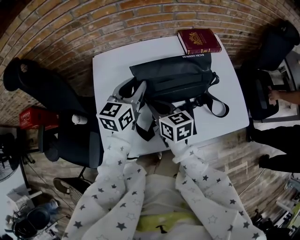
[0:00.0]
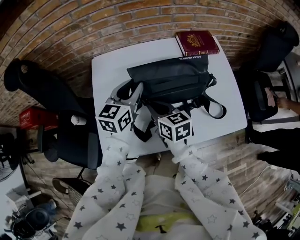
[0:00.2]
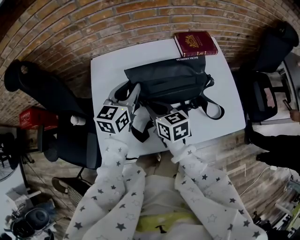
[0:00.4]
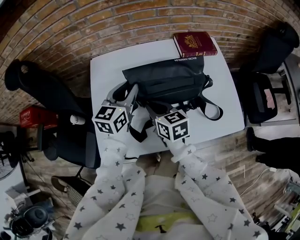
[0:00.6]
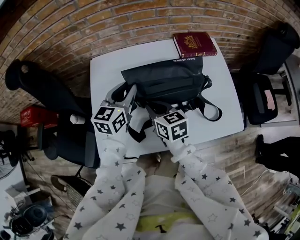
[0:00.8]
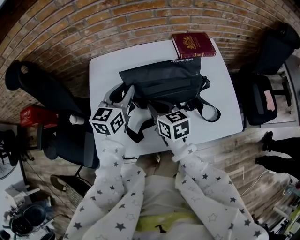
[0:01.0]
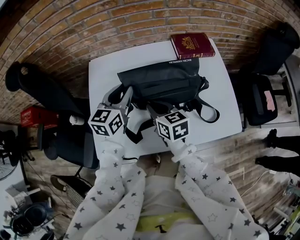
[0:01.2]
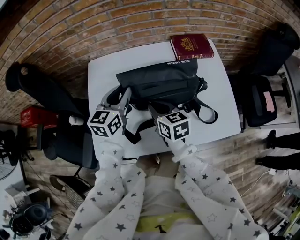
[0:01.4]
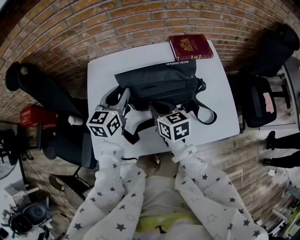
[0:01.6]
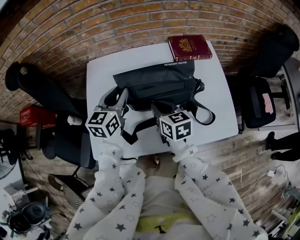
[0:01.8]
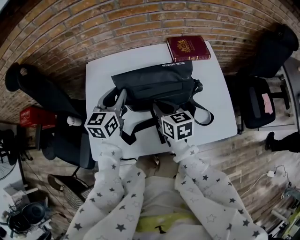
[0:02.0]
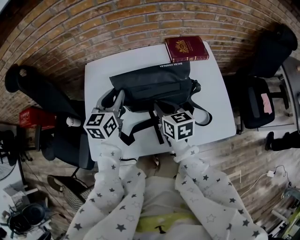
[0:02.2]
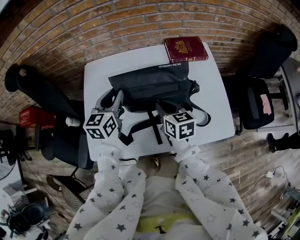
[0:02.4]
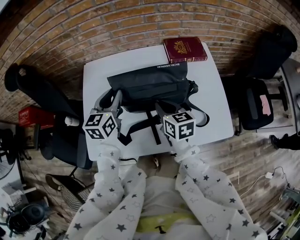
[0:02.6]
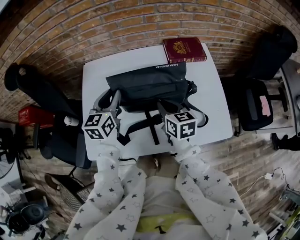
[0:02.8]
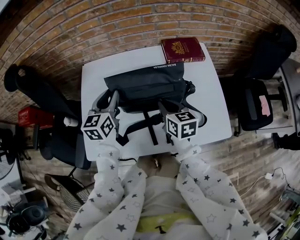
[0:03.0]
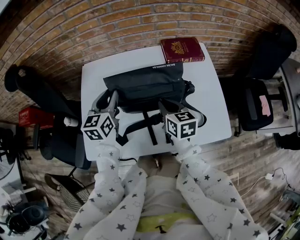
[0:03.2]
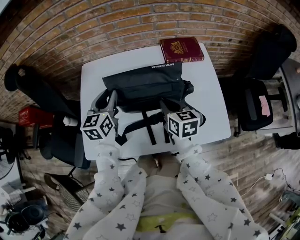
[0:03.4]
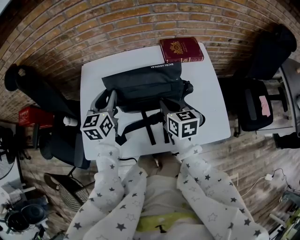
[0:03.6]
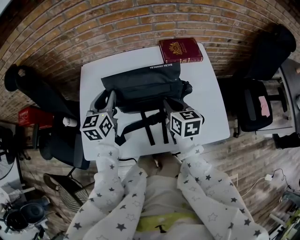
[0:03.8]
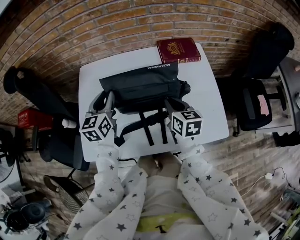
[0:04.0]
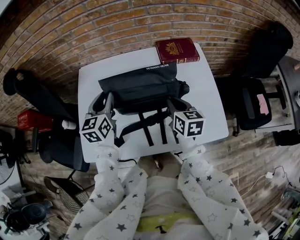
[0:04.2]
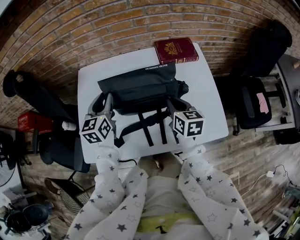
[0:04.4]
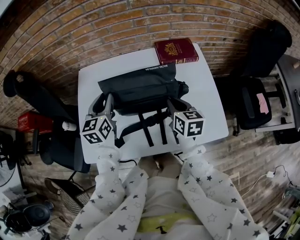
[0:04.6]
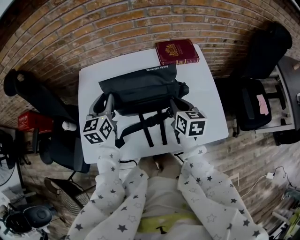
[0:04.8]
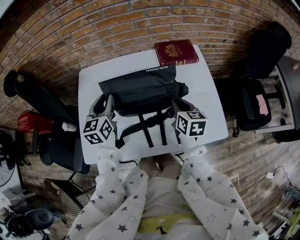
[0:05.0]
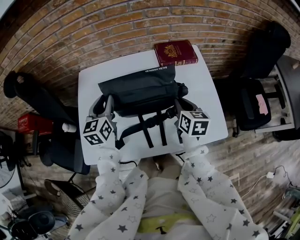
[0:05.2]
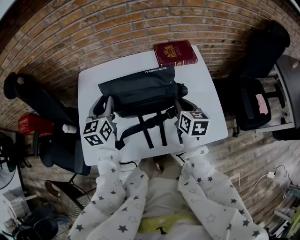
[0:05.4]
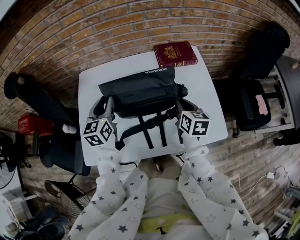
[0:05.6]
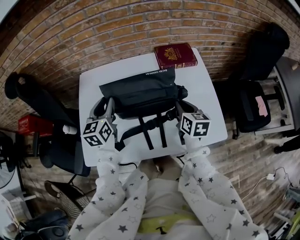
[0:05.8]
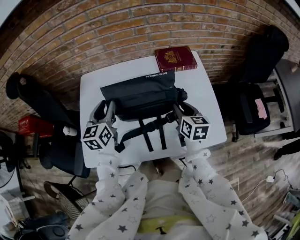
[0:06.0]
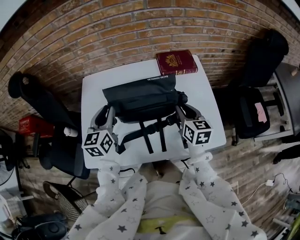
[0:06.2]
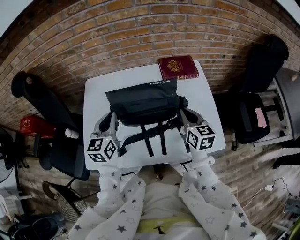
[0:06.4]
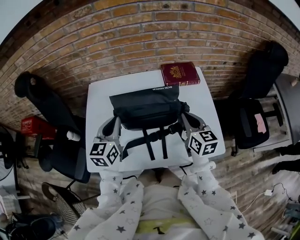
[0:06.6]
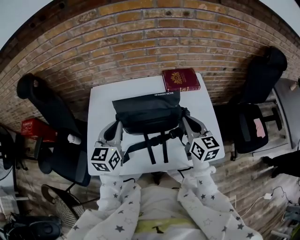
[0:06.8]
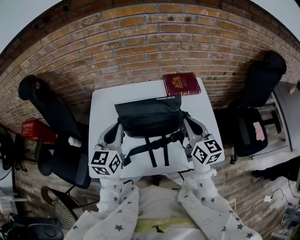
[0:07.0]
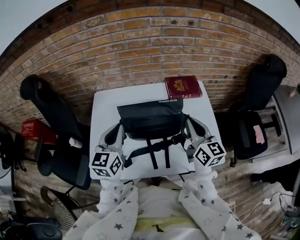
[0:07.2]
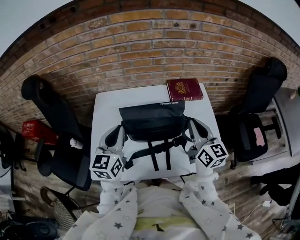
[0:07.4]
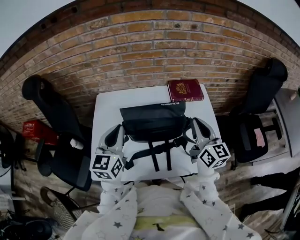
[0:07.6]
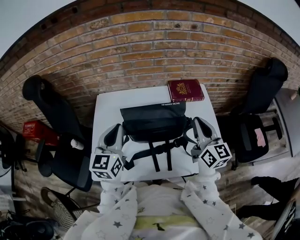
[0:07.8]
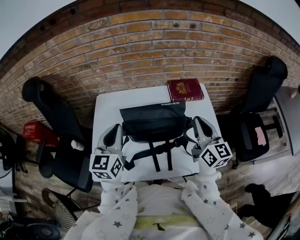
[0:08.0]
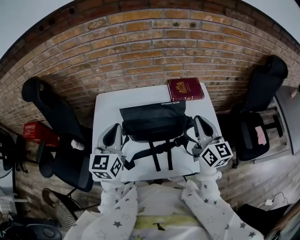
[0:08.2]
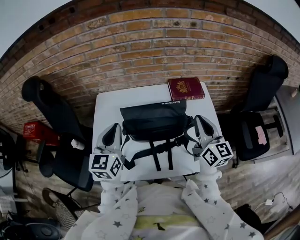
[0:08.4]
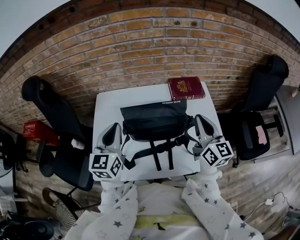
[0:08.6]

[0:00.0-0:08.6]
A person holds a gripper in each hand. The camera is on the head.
0:00.0 to 0:01.4: The right gripper heads to the right, covering roughly 5 cm.
0:01.4 to 0:02.8: The right gripper is displaced to the right by approximately 10 cm.
0:02.8 to 0:04.4: The right gripper heads to the right, covering some 5 cm.
0:04.4 to 0:05.8: The grippers stay close to where they were, moving slightly.
0:05.8 to 0:07.2: The right gripper is displaced upward by roughly 15 cm, turns by about 30 degrees, and opens, then closes again. Meanwhile the left gripper moves upward and backward, about 10 cm, and closes its fingers.
0:07.2 to 0:08.6: The grippers make only small movements.

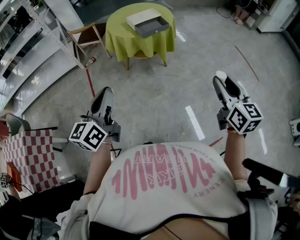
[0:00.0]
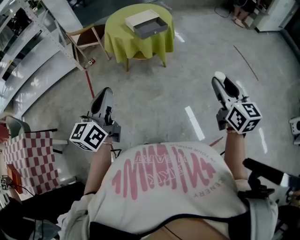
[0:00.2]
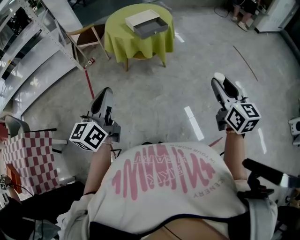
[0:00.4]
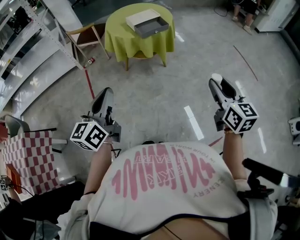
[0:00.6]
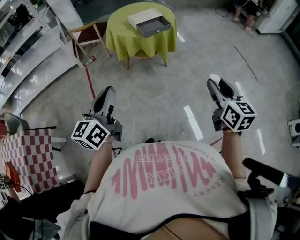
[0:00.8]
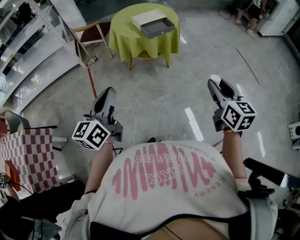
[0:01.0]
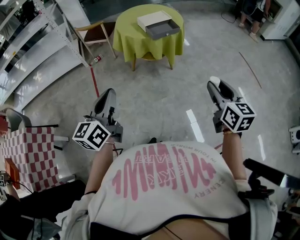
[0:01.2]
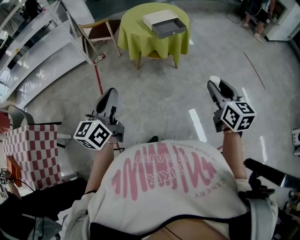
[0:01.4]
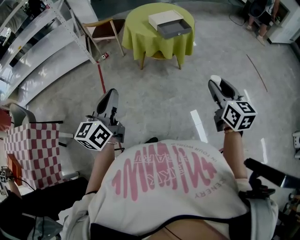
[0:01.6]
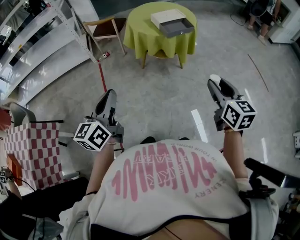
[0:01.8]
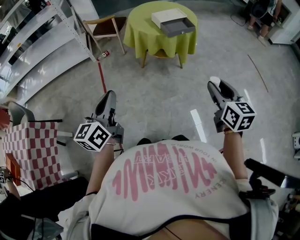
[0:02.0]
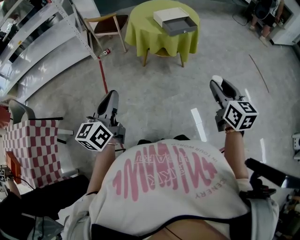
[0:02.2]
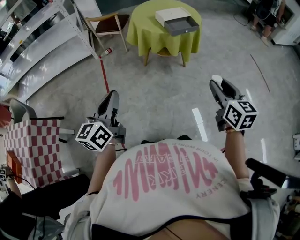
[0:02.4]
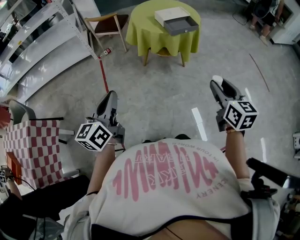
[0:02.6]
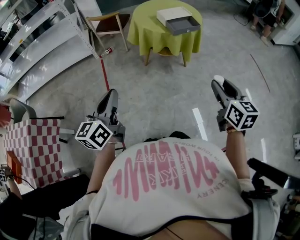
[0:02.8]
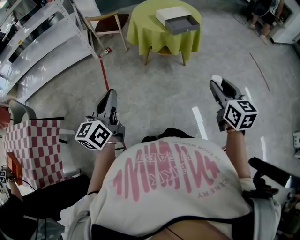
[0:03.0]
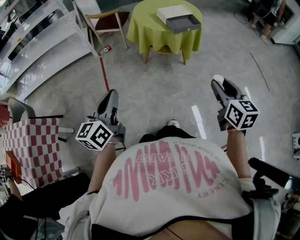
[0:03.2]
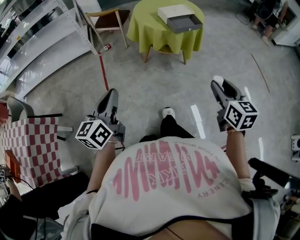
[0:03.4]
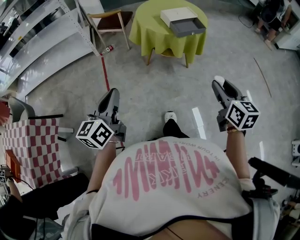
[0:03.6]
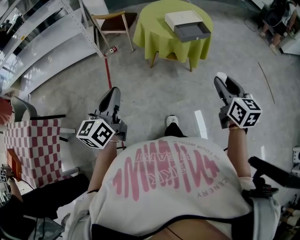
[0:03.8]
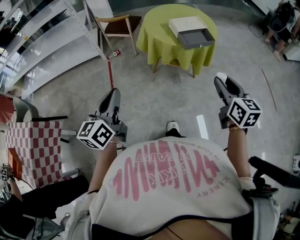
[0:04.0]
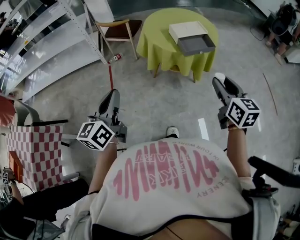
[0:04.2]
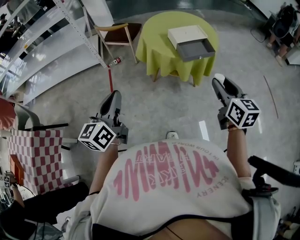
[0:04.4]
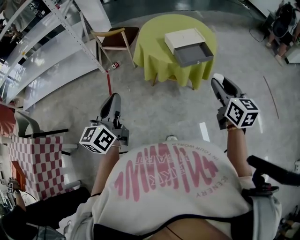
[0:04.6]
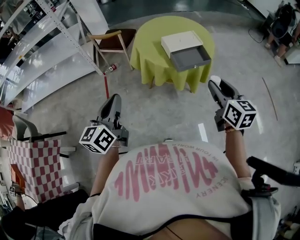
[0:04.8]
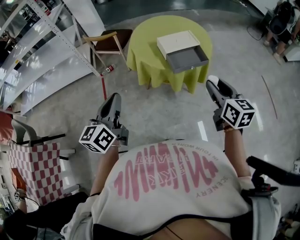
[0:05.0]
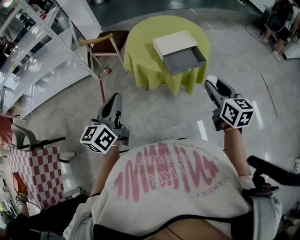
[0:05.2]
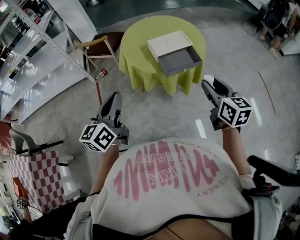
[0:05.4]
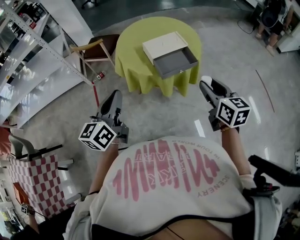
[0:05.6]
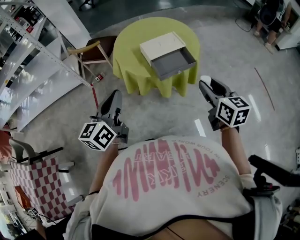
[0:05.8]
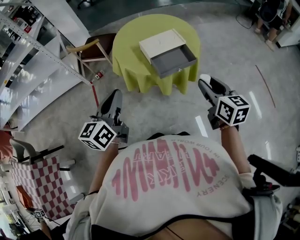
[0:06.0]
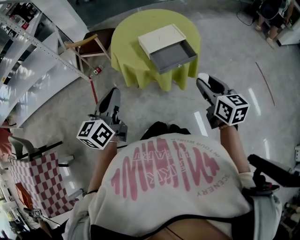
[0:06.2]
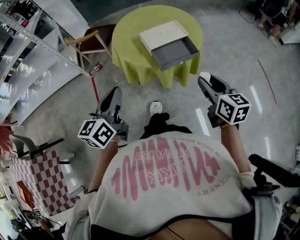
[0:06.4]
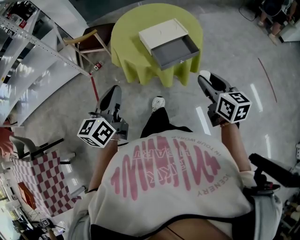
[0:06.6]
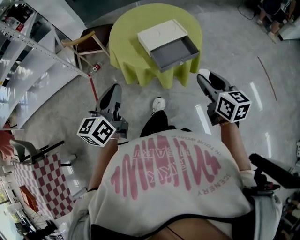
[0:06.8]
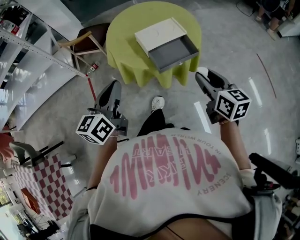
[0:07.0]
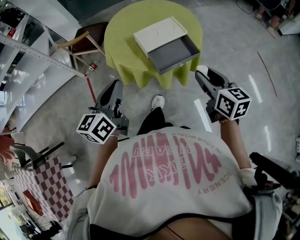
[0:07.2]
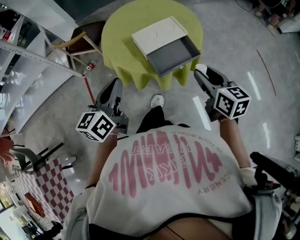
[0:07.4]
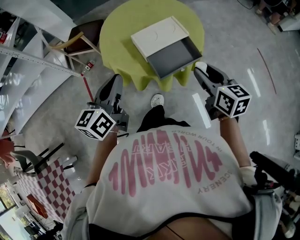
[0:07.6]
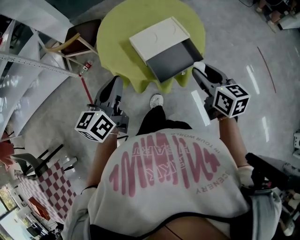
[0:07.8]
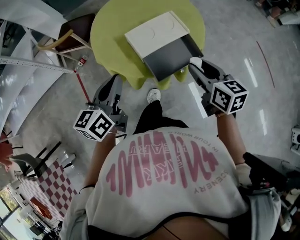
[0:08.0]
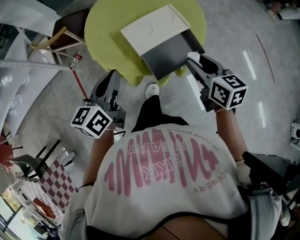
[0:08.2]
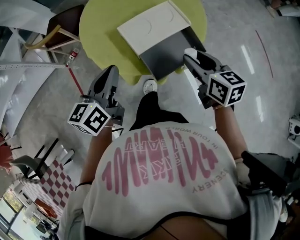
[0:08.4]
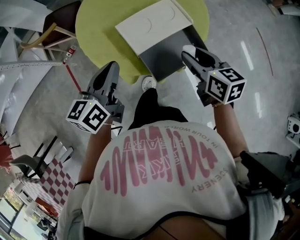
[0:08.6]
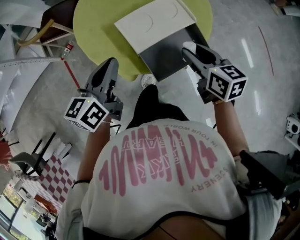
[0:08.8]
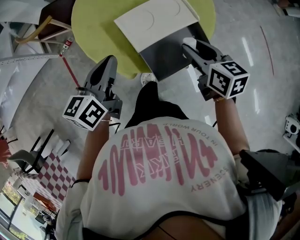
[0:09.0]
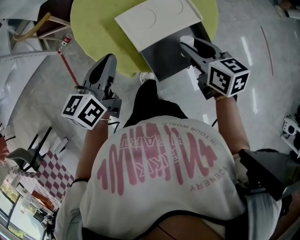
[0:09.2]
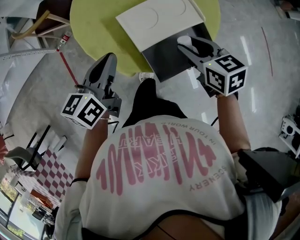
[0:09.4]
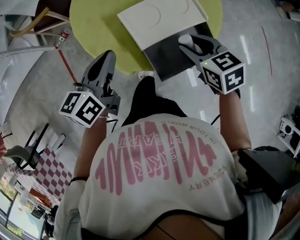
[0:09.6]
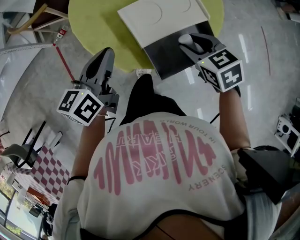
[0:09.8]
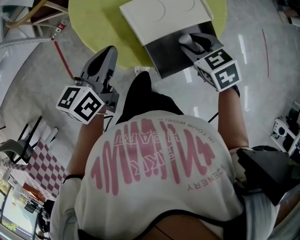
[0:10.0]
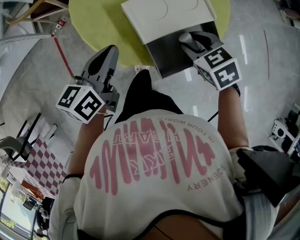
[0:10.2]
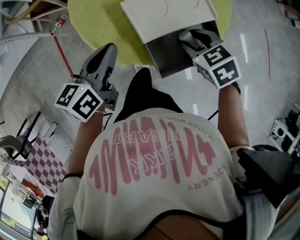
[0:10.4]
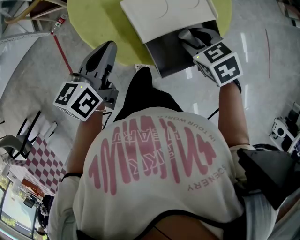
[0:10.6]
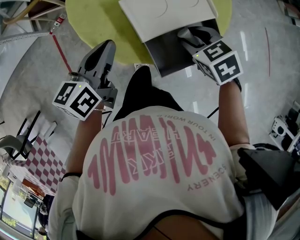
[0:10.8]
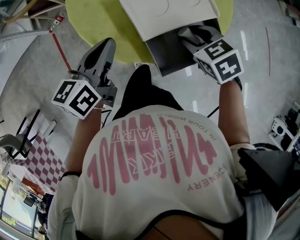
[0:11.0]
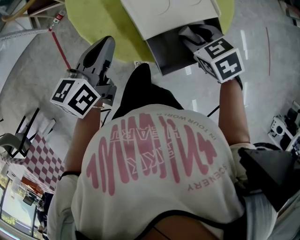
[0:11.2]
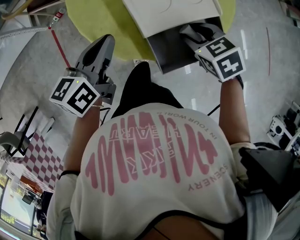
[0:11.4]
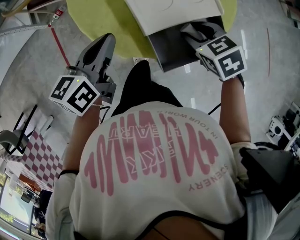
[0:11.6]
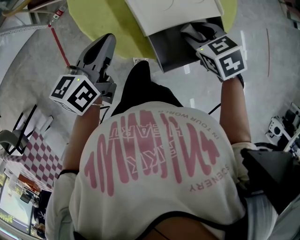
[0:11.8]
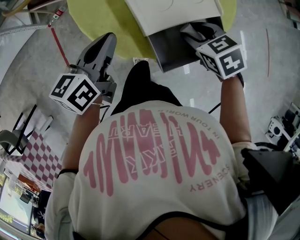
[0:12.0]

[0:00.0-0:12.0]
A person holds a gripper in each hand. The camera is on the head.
0:00.0 to 0:01.6: The grippers both shift to the left by some 10 cm.
0:01.6 to 0:03.0: The right gripper moves roughly 5 cm. The left gripper heads to the left, covering approximately 5 cm.
0:03.0 to 0:04.4: Both grippers move forward, about 20 cm.
0:04.4 to 0:06.0: Both grippers move forward and to the right, about 20 cm.
0:06.0 to 0:07.6: Both grippers move forward, about 15 cm.
0:07.6 to 0:09.0: The grippers both shift forward and downward by approximately 15 cm.
0:09.0 to 0:10.4: The right gripper heads downward, covering roughly 5 cm, and turns by roughly 40 degrees.
0:10.4 to 0:12.0: Neither gripper changes place.

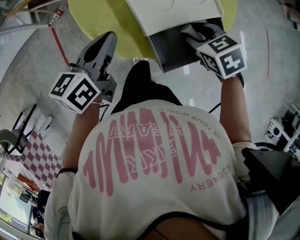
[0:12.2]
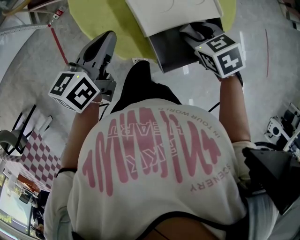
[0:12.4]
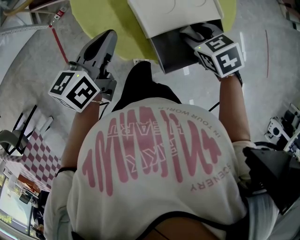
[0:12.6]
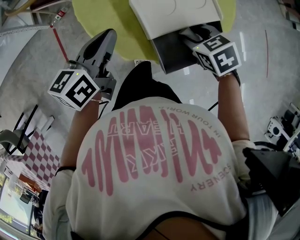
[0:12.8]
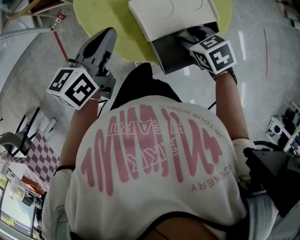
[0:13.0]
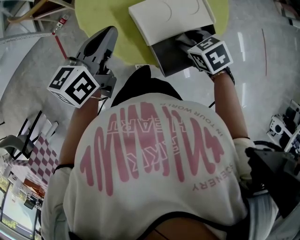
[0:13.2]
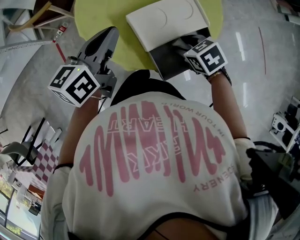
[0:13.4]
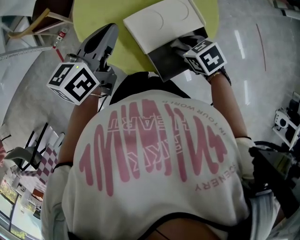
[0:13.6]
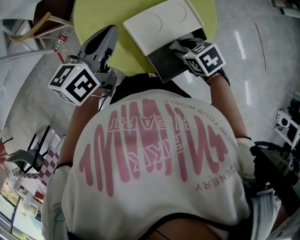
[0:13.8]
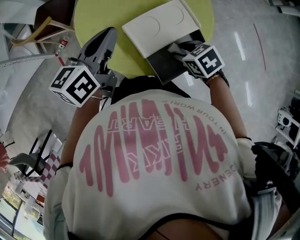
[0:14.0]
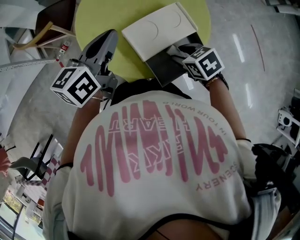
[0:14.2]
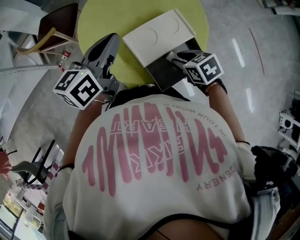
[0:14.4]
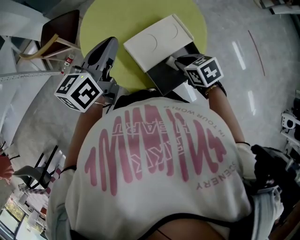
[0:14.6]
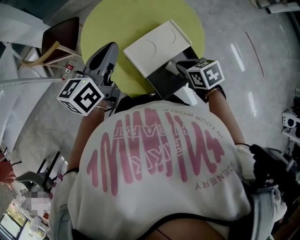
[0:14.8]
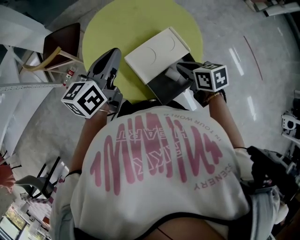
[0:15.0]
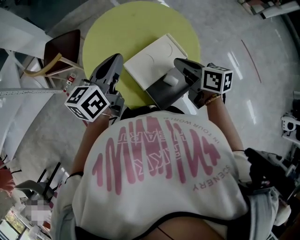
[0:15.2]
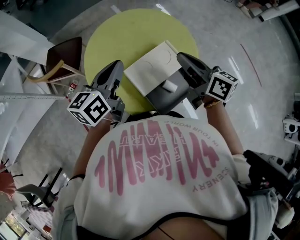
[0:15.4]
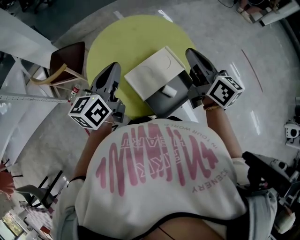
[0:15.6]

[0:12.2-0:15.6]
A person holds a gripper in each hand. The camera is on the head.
0:12.2 to 0:13.8: The left gripper heads upward and forward, covering roughly 10 cm.
0:13.8 to 0:15.6: The right gripper moves upward, about 25 cm, tips its fingers upward by some 60 degrees, and closes; the left gripper travels upward by roughly 5 cm.
